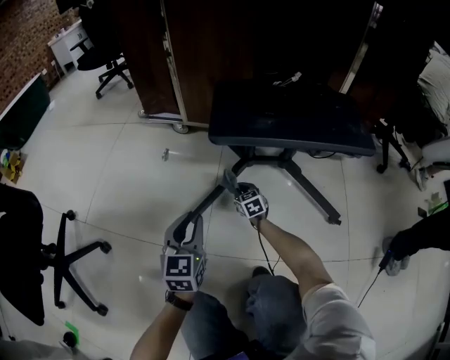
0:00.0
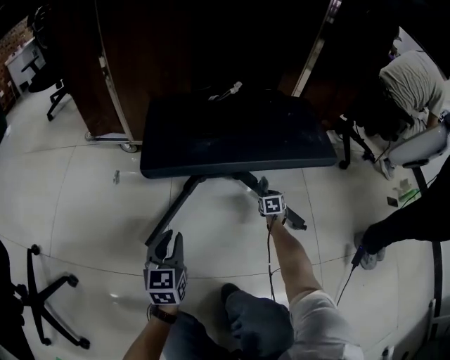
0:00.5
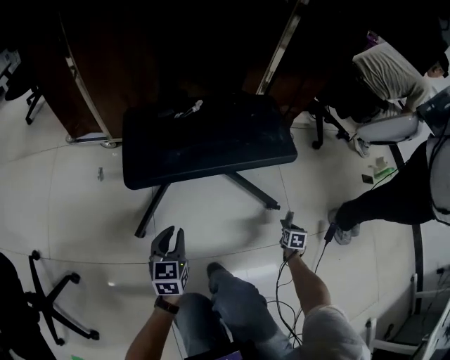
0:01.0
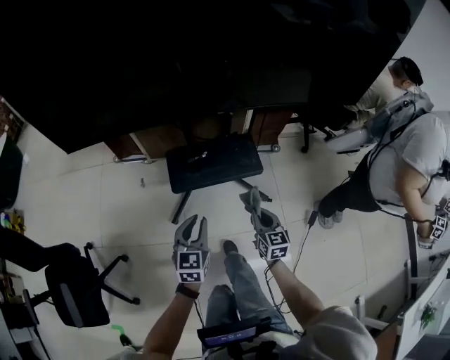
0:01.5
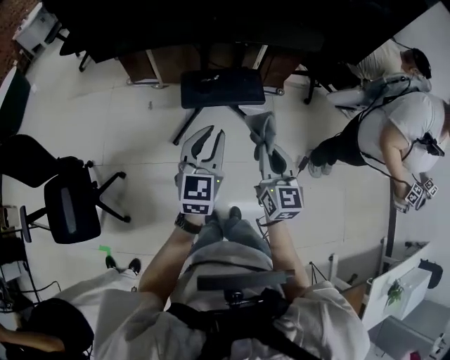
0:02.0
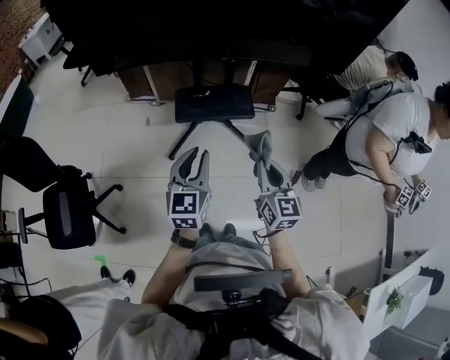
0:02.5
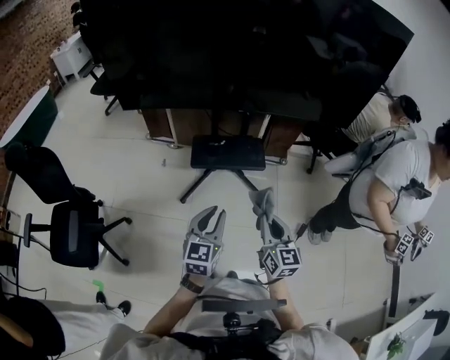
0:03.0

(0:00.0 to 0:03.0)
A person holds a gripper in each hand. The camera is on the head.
0:00.0 - 0:01.5: The two grippers go roughly 60 cm upward. The right gripper swivels some 30 degrees.
0:01.5 - 0:03.0: The right gripper is displaced upward and backward by roughly 40 cm. Meanwhile the left gripper is displaced backward and upward by about 35 cm.

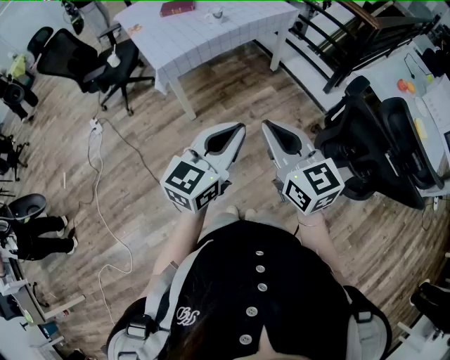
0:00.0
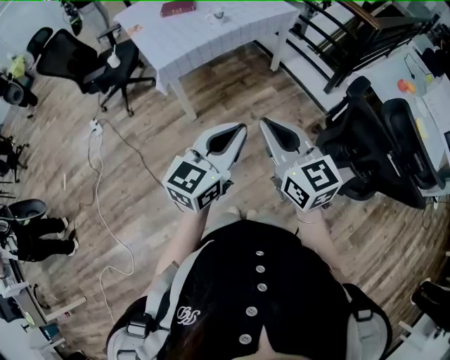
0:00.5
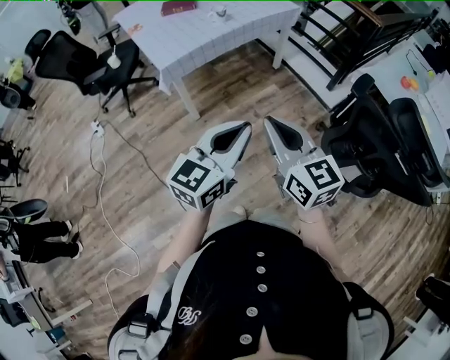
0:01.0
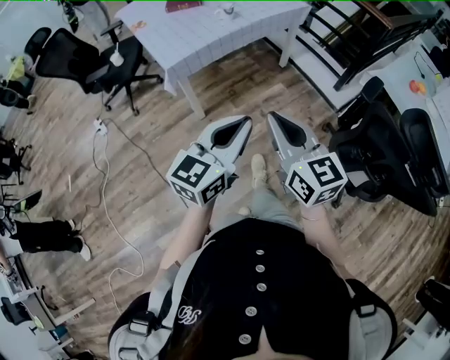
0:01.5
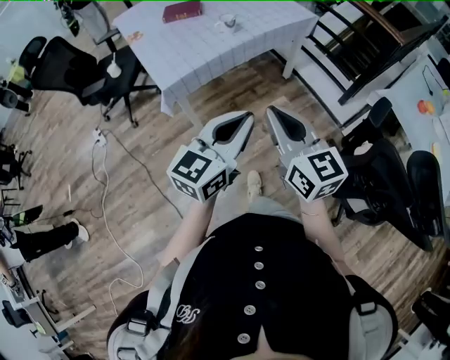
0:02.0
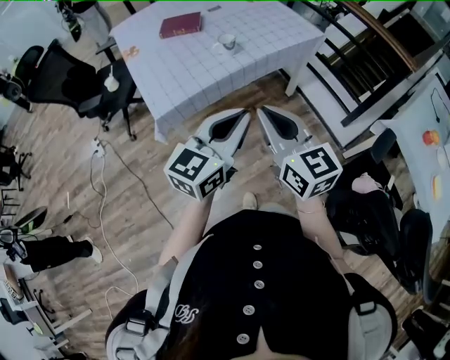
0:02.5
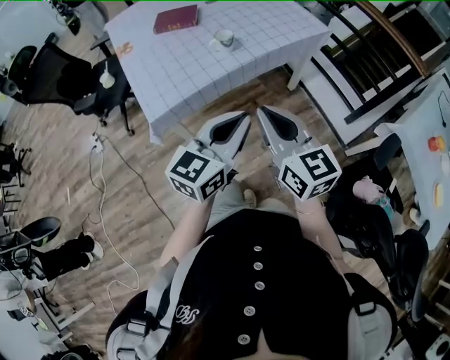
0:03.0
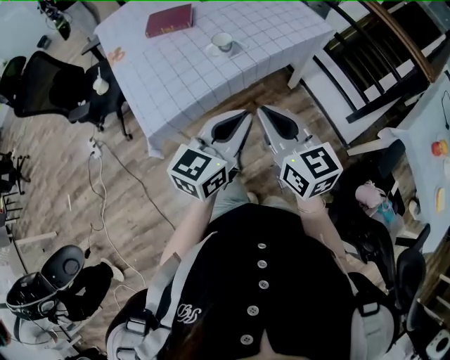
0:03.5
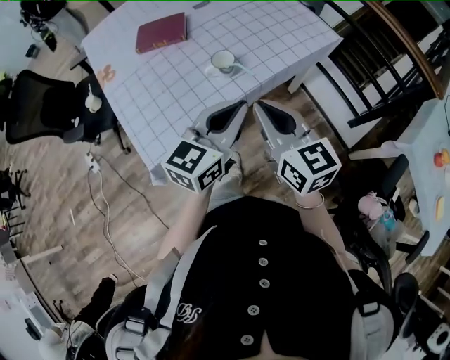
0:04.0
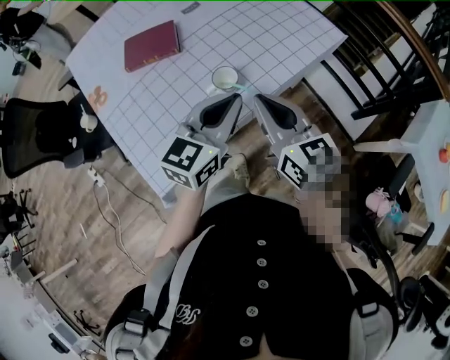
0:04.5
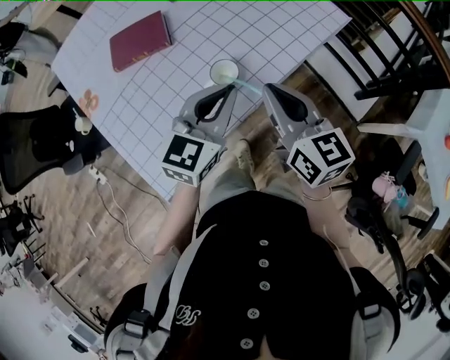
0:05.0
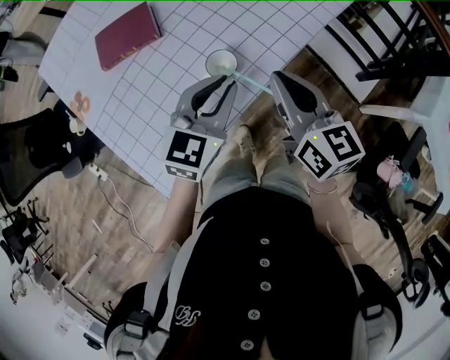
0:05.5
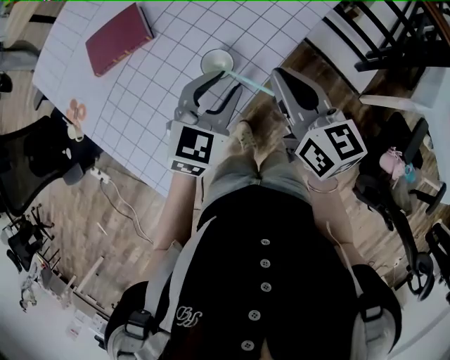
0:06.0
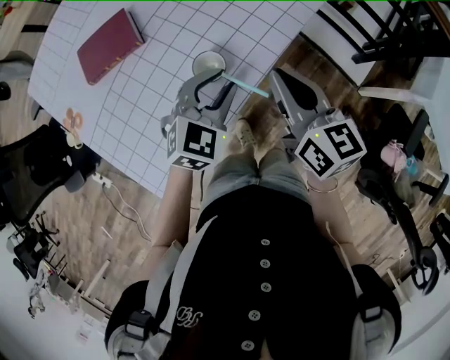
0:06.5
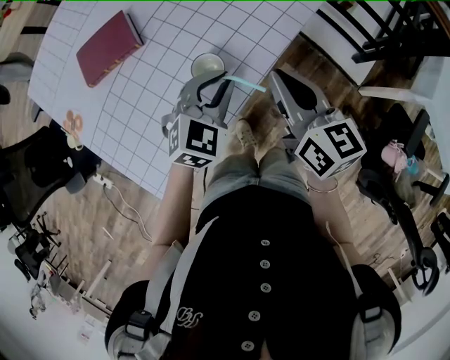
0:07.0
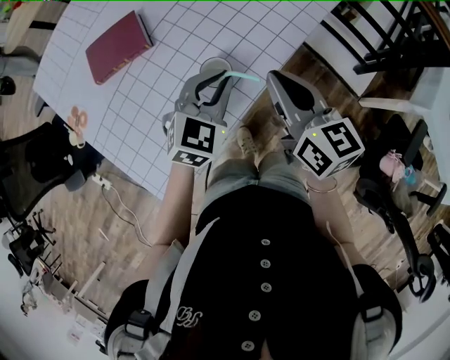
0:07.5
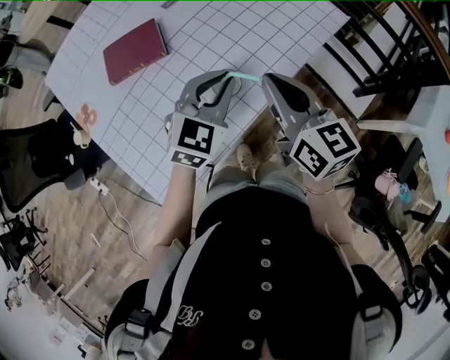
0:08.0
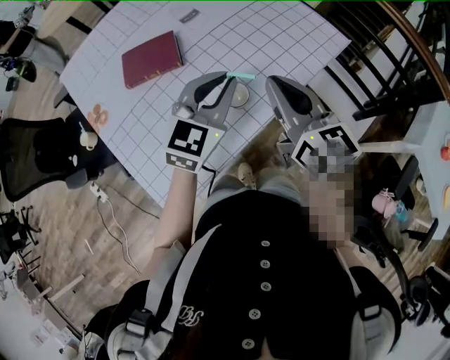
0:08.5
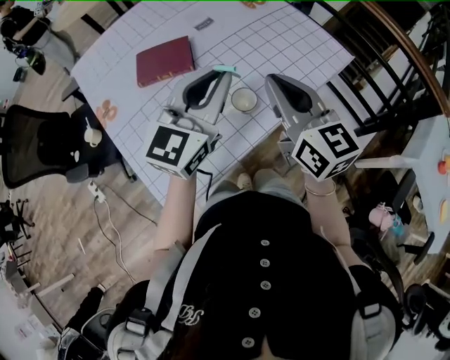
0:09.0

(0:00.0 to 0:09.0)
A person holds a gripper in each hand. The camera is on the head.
0:00.0 - 0:02.0: Both grippers travel together forward, approximately 20 cm.
0:02.0 - 0:04.5: The two grippers travel together, forward, some 50 cm.
0:04.5 - 0:07.0: The right gripper is displaced downward and forward by approximately 10 cm. The left gripper goes approximately 15 cm downward and forward, swivels about 40 degrees, and opens, then closes once more.
0:07.0 - 0:09.0: The left gripper shifts approximately 20 cm upward, and tips its fingers upward by about 40 degrees; the right gripper shifts approximately 15 cm upward and to the left, and swivels some 20 degrees.

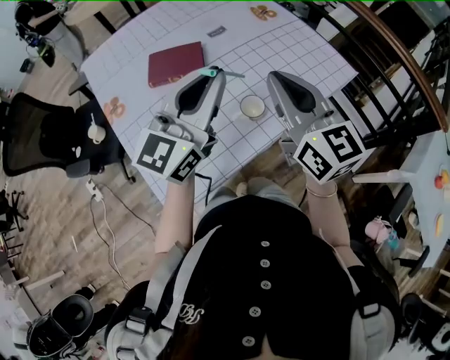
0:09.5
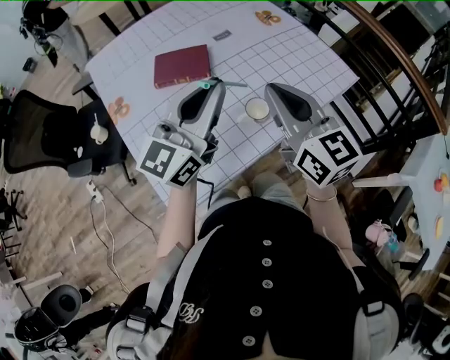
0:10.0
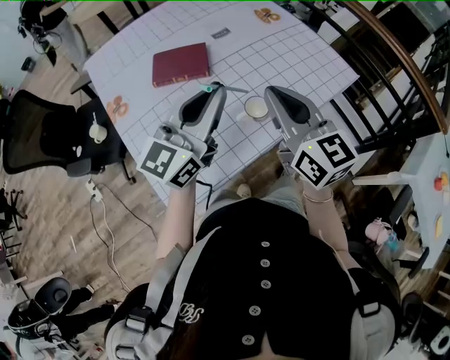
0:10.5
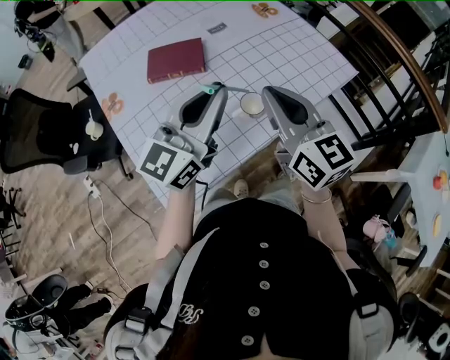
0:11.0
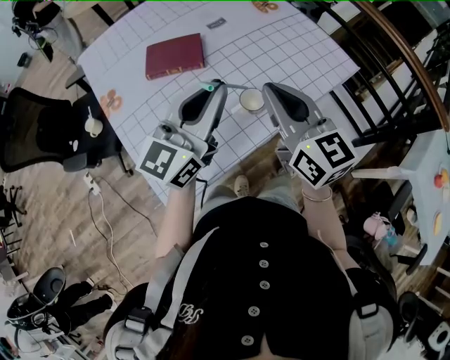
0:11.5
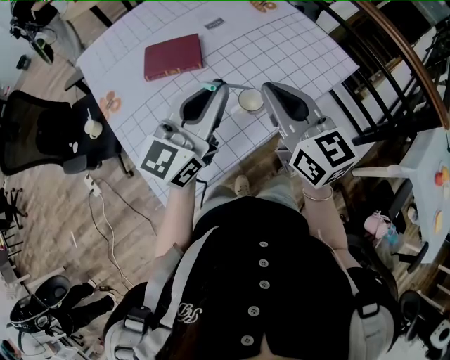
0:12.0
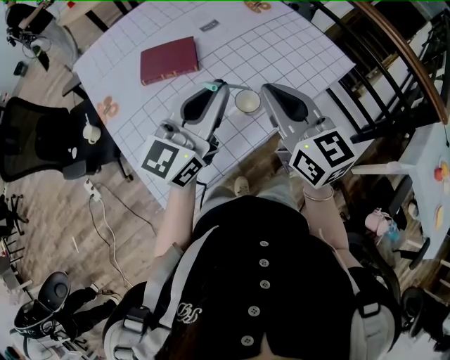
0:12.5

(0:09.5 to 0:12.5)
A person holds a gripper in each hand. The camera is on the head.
0:09.5 - 0:12.5: The grippers move only a little.

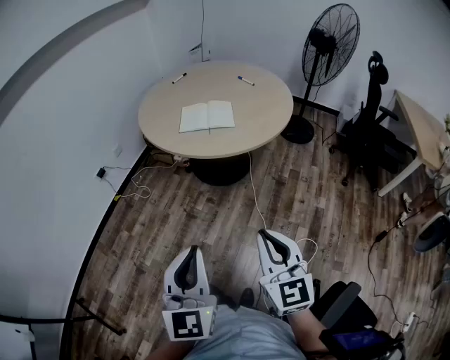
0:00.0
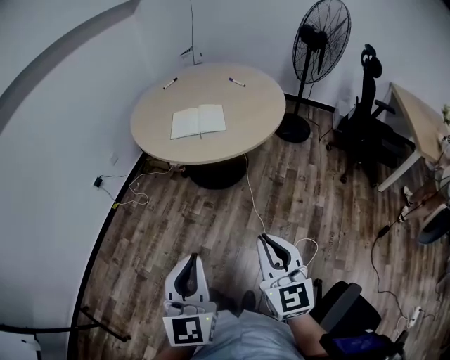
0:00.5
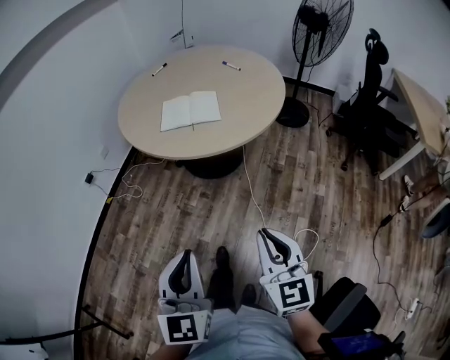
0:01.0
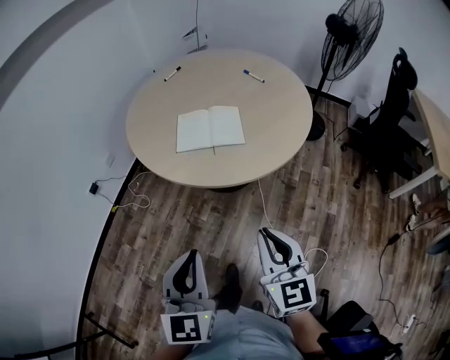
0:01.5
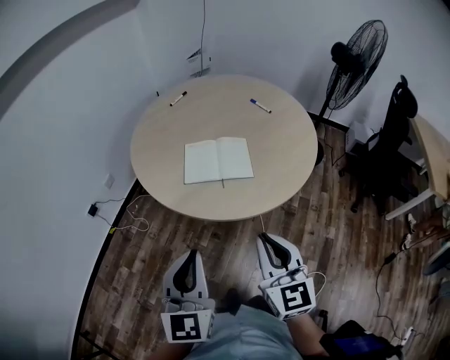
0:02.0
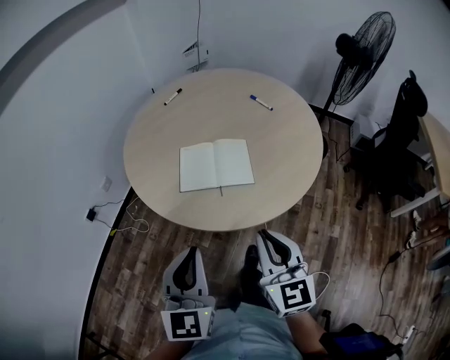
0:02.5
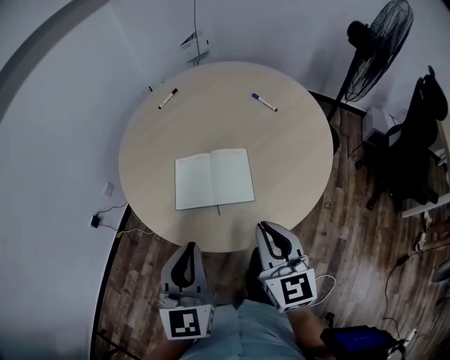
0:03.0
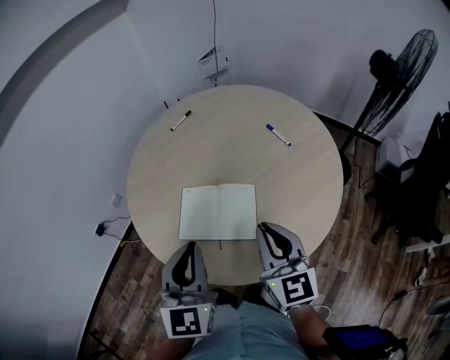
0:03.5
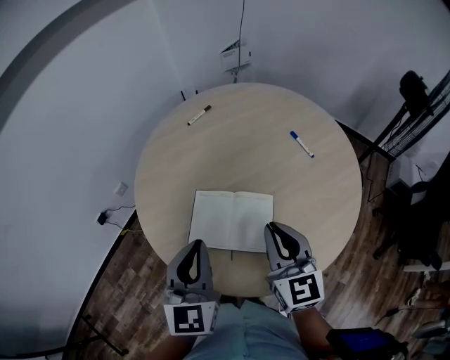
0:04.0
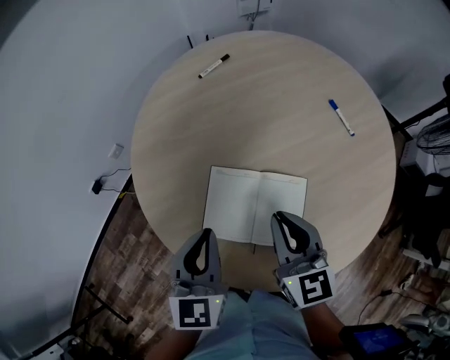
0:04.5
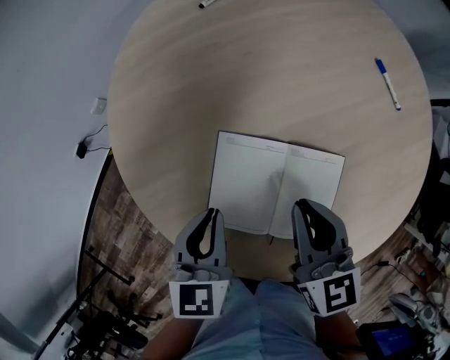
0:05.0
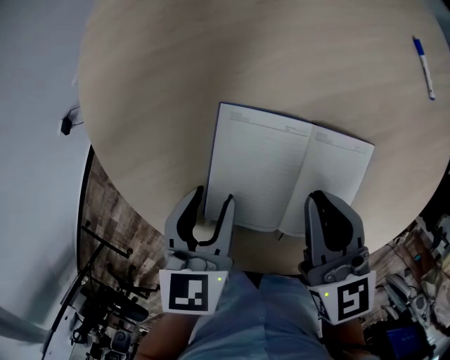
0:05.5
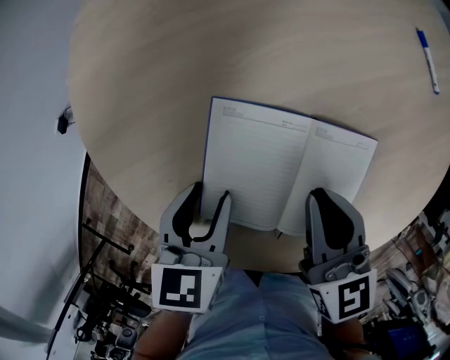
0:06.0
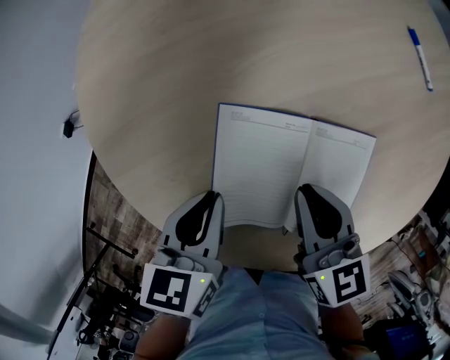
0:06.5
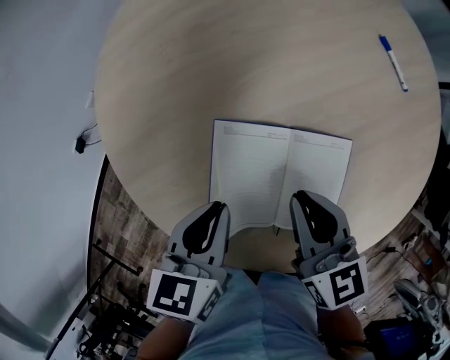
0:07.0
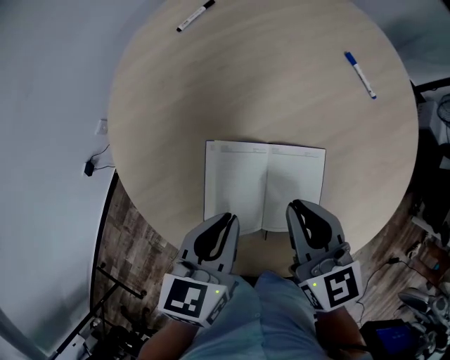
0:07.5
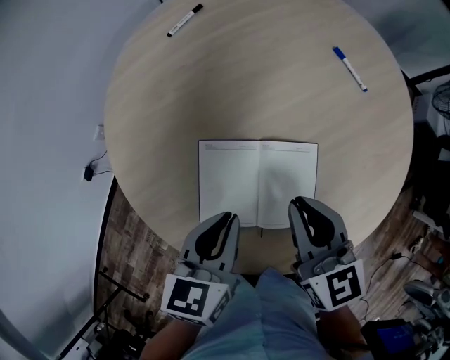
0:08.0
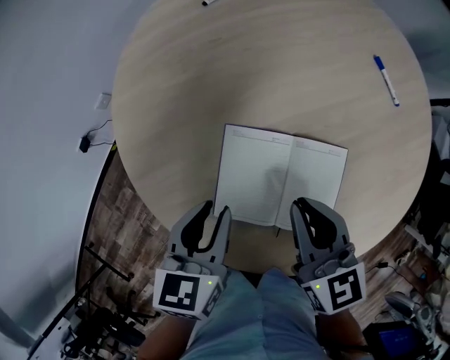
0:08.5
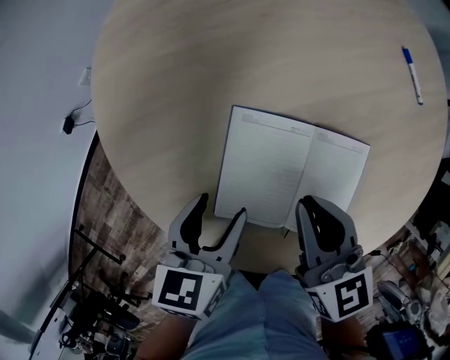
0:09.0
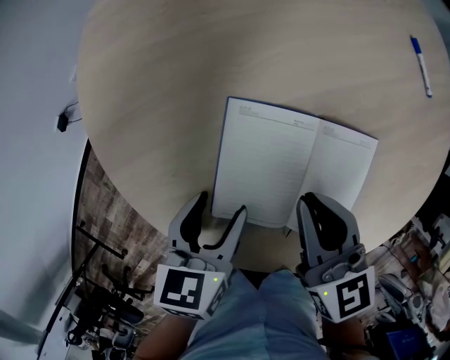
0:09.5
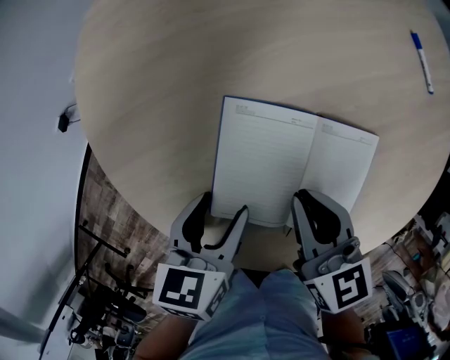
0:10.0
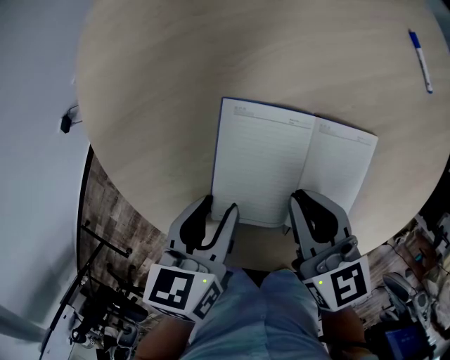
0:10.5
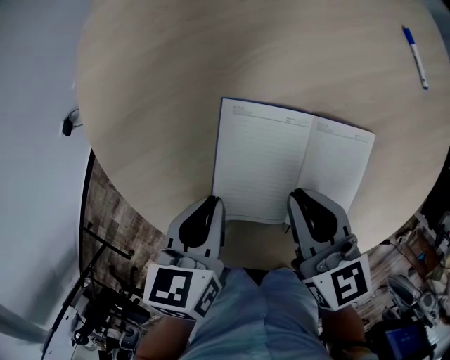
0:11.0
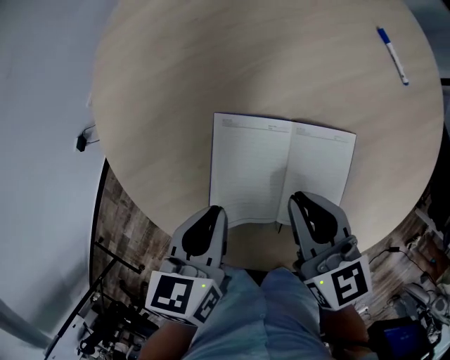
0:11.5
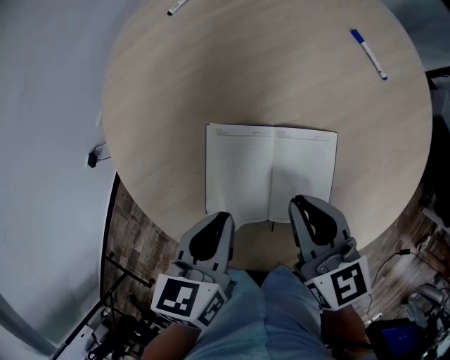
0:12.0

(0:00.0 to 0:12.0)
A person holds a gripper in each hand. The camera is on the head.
0:00.0 - 0:02.0: The two grippers go approximately 35 cm forward.
0:02.0 - 0:04.0: The grippers both shift forward by about 40 cm.
0:04.0 - 0:06.0: The right gripper shifts roughly 25 cm downward, to the left and forward, and turns by about 30 degrees. Meanwhile the left gripper is displaced downward and to the left by approximately 30 cm, angles its fingers downward, by about 40 degrees, and opens its fingers.
0:06.0 - 0:08.0: The left gripper heads upward and to the right, covering roughly 15 cm, and closes; the right gripper goes roughly 10 cm upward.
0:08.0 - 0:10.0: The two grippers go roughly 15 cm downward and to the left. The left gripper opens up.
0:10.0 - 0:12.0: The two grippers go about 10 cm upward and to the right. The left gripper closes its fingers.
